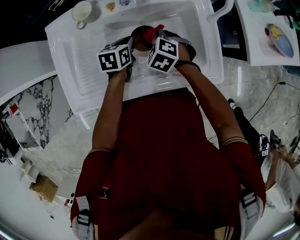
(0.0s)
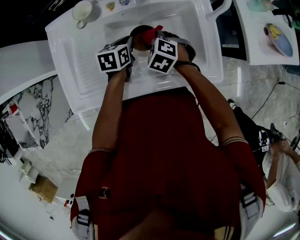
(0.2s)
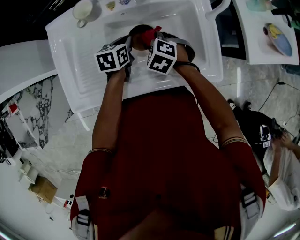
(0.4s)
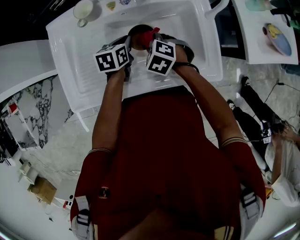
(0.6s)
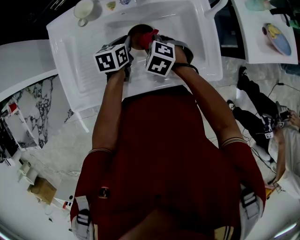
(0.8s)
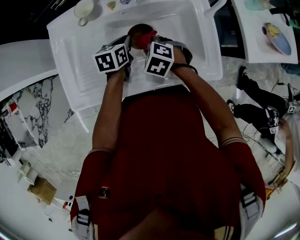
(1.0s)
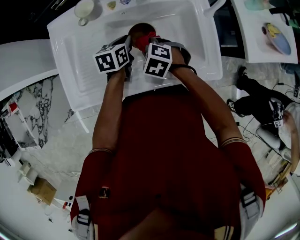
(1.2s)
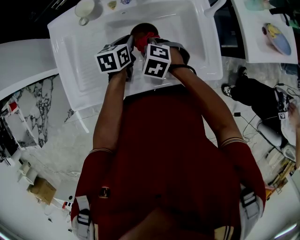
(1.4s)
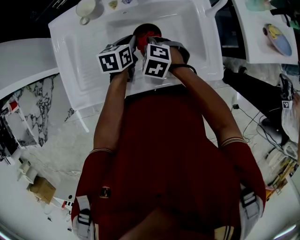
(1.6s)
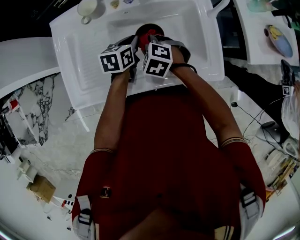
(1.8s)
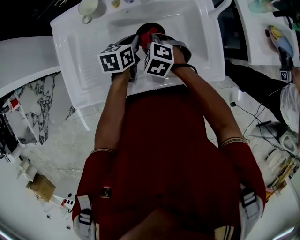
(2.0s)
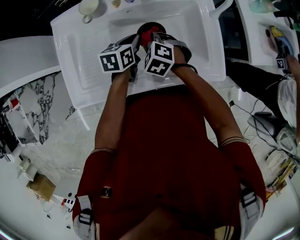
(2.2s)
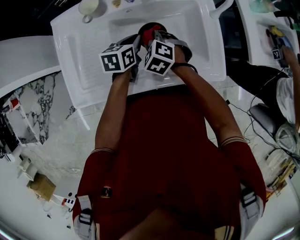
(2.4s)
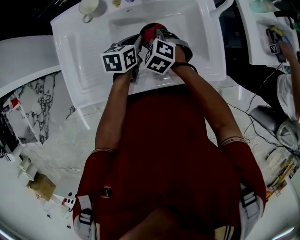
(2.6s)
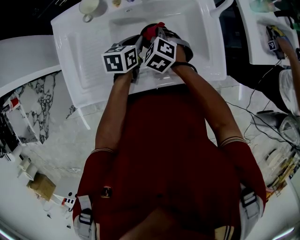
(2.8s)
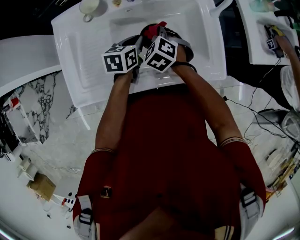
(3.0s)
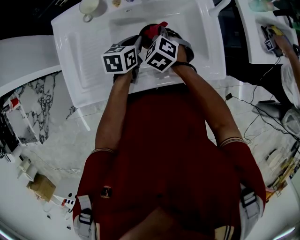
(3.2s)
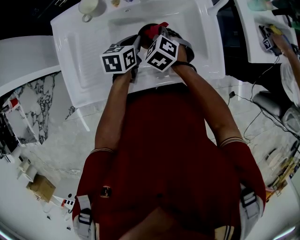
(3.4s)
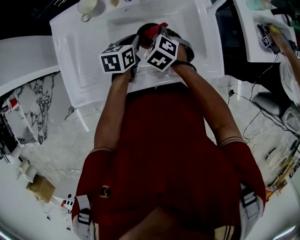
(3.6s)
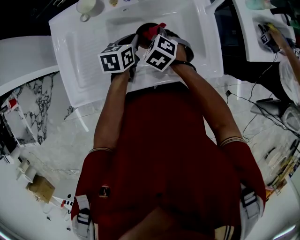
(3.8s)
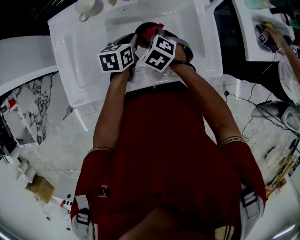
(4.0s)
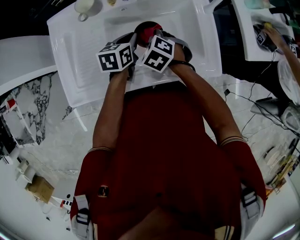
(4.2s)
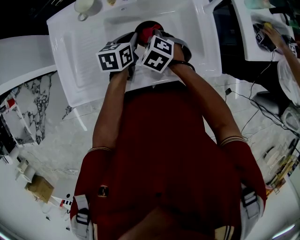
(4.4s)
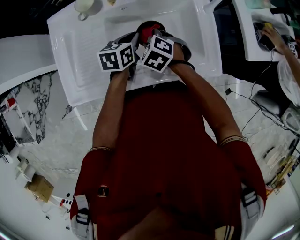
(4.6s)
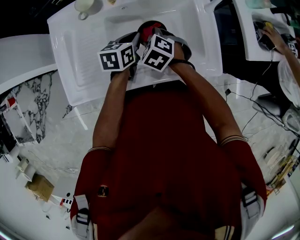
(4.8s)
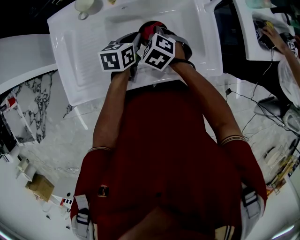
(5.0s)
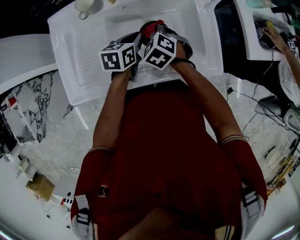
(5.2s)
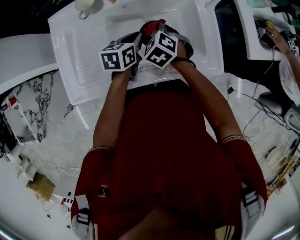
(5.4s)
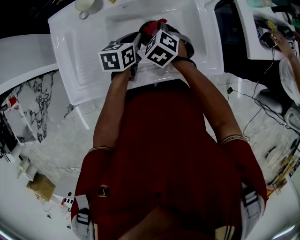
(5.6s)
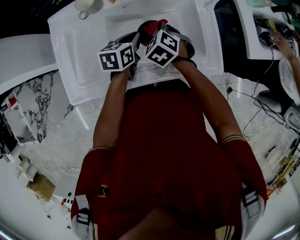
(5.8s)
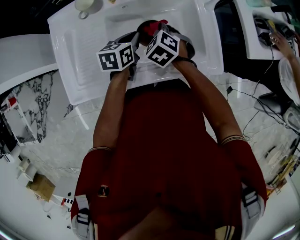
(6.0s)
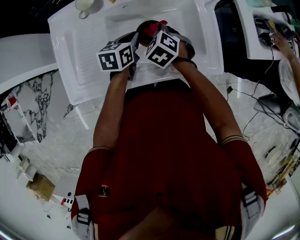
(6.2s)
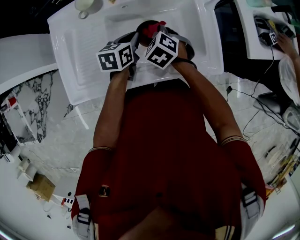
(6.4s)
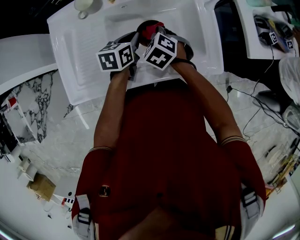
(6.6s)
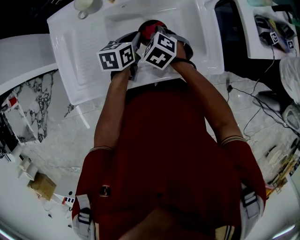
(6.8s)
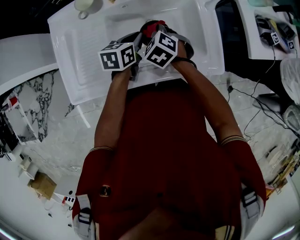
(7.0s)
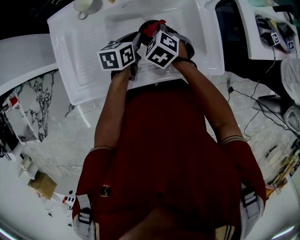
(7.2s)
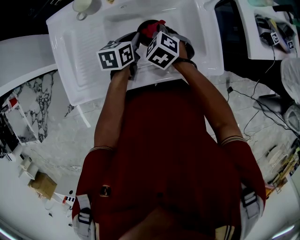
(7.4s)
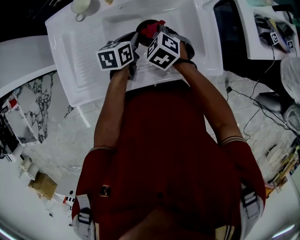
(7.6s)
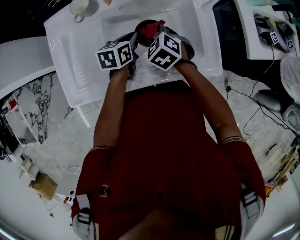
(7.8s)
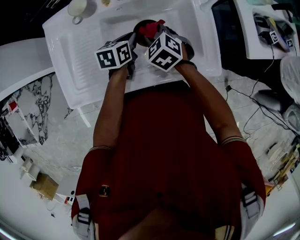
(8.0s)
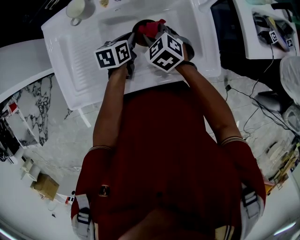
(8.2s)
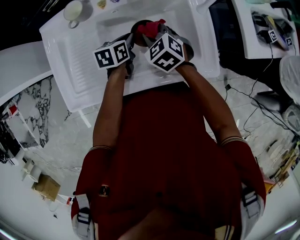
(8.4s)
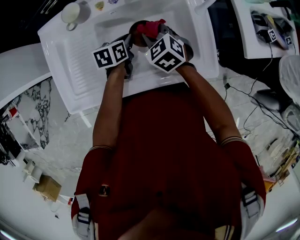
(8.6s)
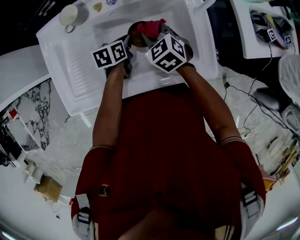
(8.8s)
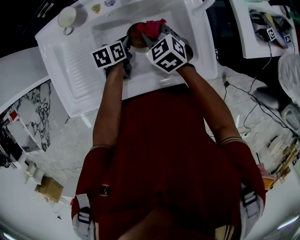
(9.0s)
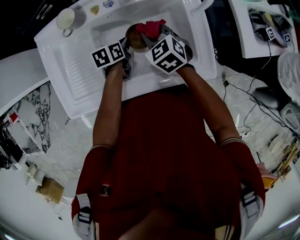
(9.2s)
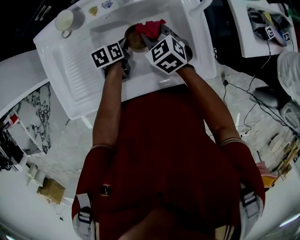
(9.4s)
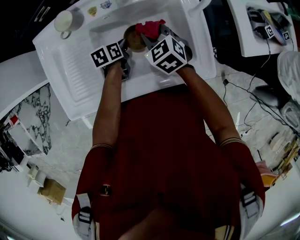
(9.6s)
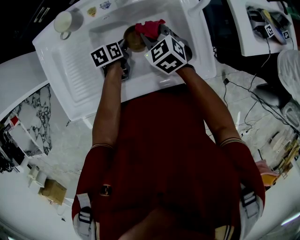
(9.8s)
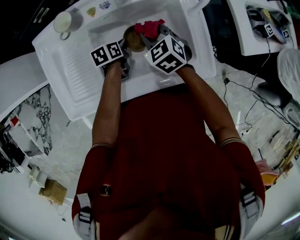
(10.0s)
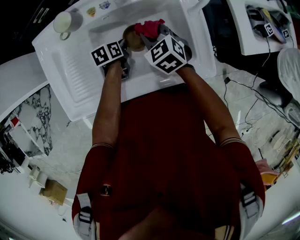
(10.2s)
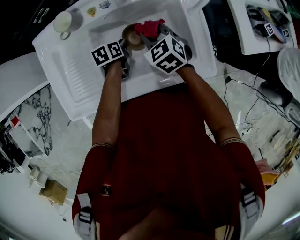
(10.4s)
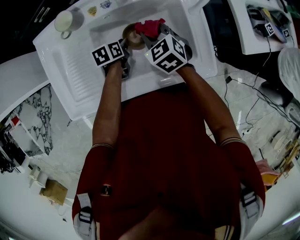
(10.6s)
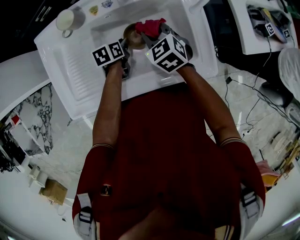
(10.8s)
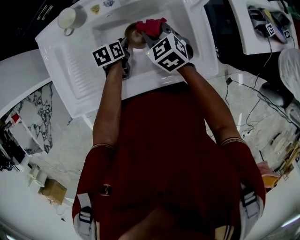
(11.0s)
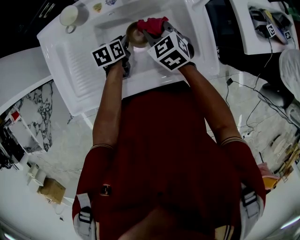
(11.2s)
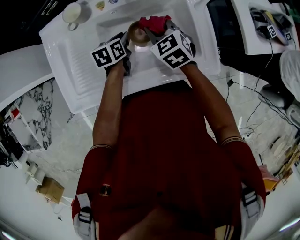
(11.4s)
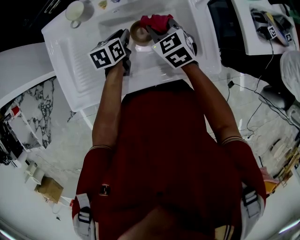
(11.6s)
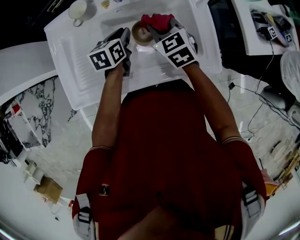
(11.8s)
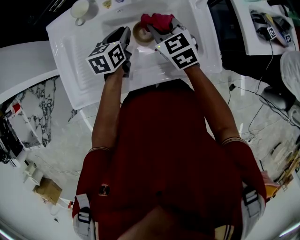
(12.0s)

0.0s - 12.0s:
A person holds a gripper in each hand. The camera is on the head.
0.0s - 1.6s: The right gripper shifts by some 5 cm.
1.6s - 3.0s: The right gripper heads forward, covering some 5 cm.
3.0s - 7.6s: The grippers make only small movements.
7.6s - 9.0s: The right gripper changes place by some 5 cm, while the left gripper goes roughly 5 cm downward.
9.0s - 10.4s: There are only small adjustments of the grippers.
10.4s - 12.0s: The right gripper goes about 5 cm upward, while the left gripper shifts some 15 cm upward, and changes its angle by approximately 30 degrees.

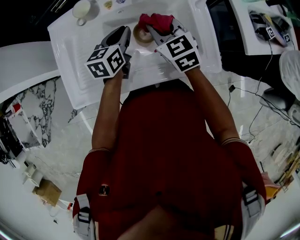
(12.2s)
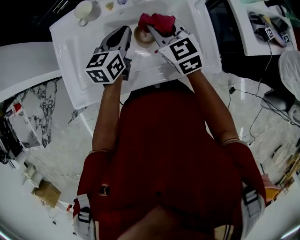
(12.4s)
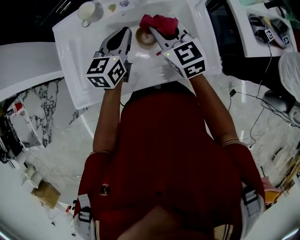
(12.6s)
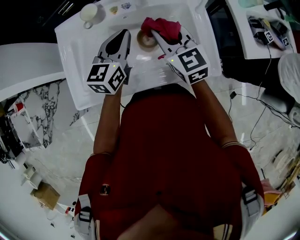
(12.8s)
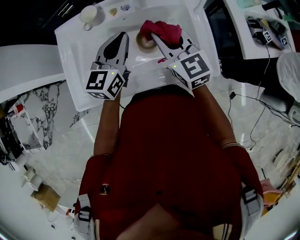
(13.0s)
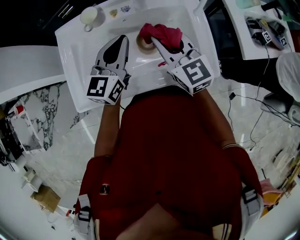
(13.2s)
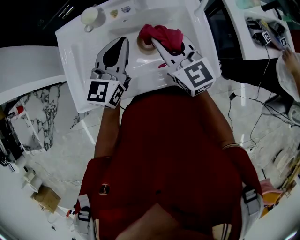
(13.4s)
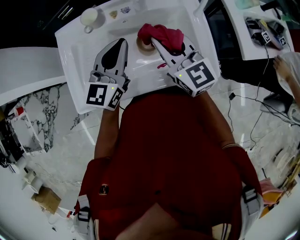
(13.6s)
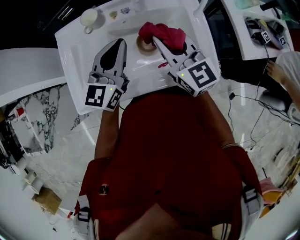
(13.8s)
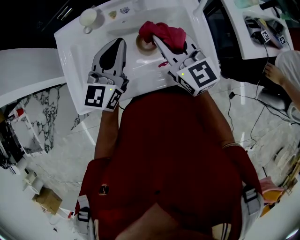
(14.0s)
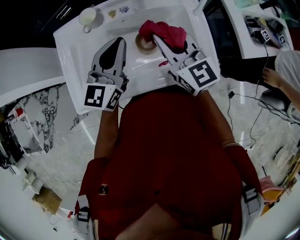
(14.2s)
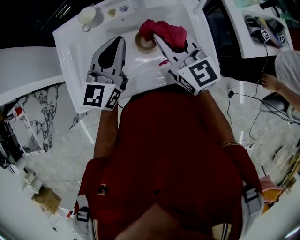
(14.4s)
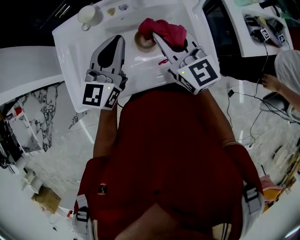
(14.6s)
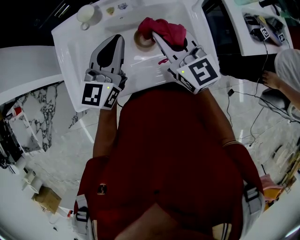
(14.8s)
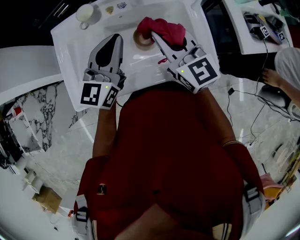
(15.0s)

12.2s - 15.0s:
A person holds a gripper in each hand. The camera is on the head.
12.2s - 13.6s: Both grippers travel together upward, about 10 cm. The left gripper rotates roughly 30 degrees. The right gripper rotates roughly 20 degrees.
13.6s - 15.0s: Both grippers stay about where they are.

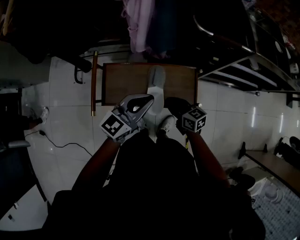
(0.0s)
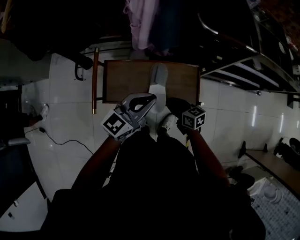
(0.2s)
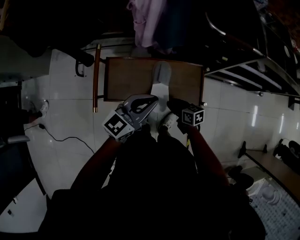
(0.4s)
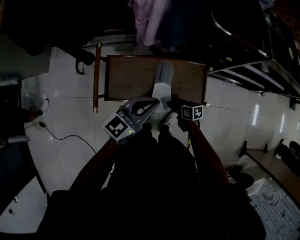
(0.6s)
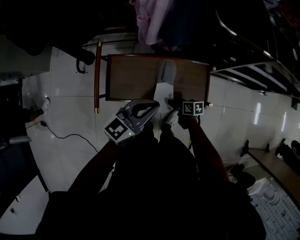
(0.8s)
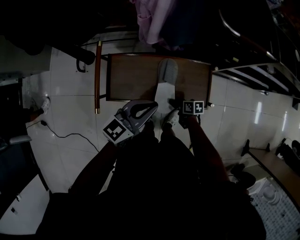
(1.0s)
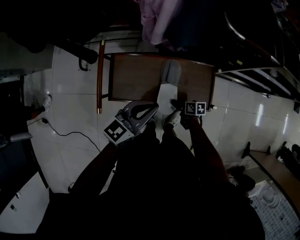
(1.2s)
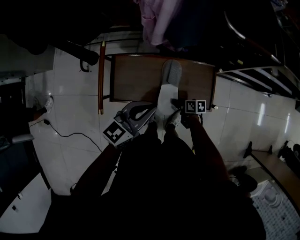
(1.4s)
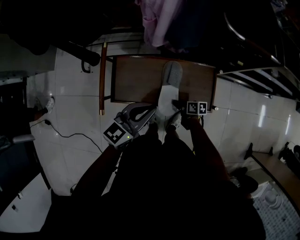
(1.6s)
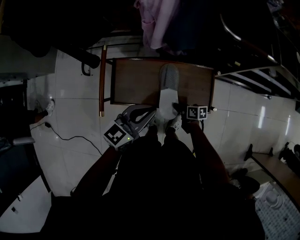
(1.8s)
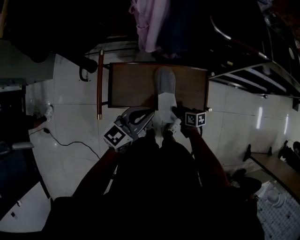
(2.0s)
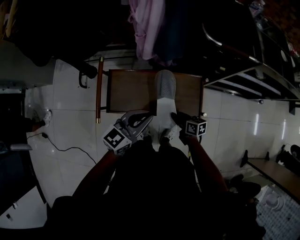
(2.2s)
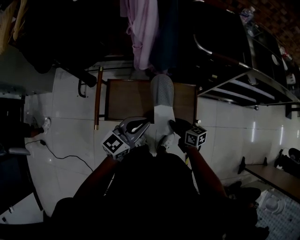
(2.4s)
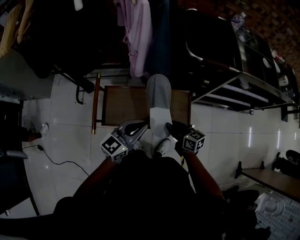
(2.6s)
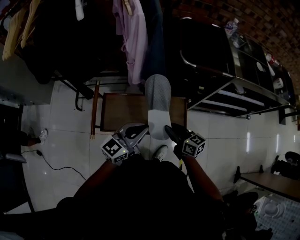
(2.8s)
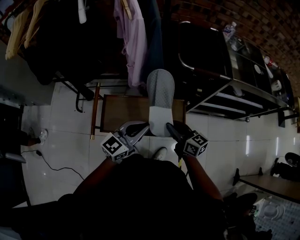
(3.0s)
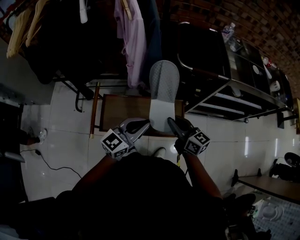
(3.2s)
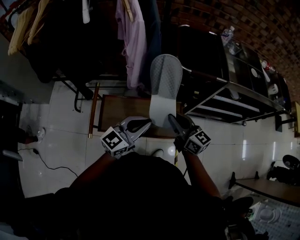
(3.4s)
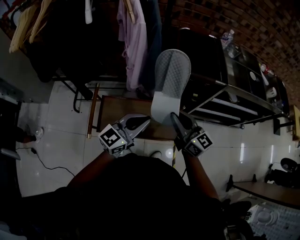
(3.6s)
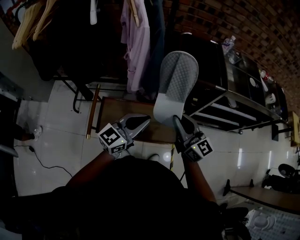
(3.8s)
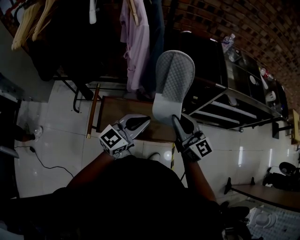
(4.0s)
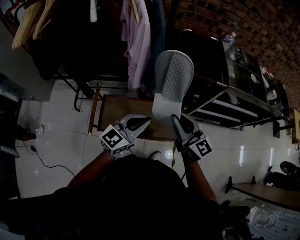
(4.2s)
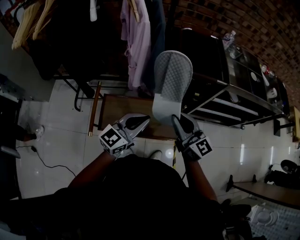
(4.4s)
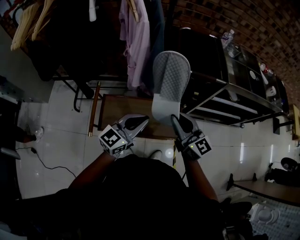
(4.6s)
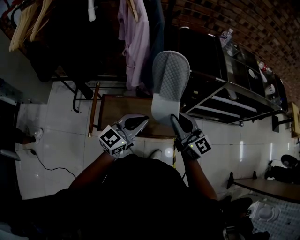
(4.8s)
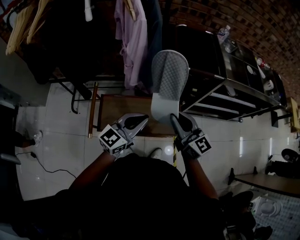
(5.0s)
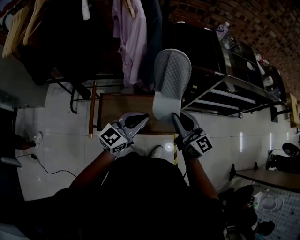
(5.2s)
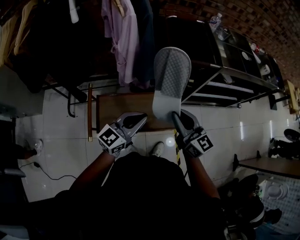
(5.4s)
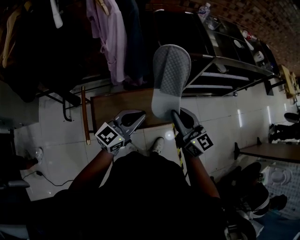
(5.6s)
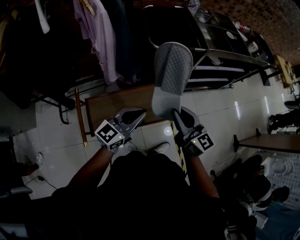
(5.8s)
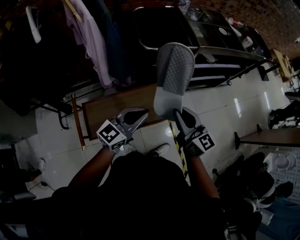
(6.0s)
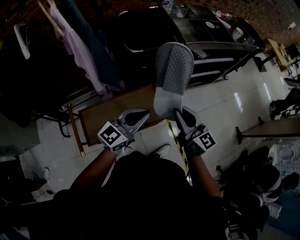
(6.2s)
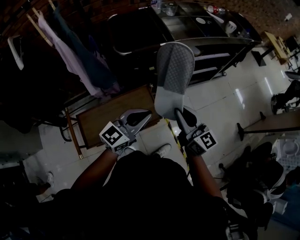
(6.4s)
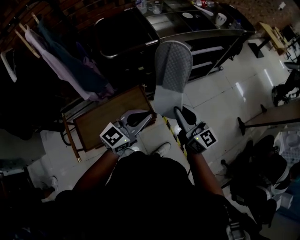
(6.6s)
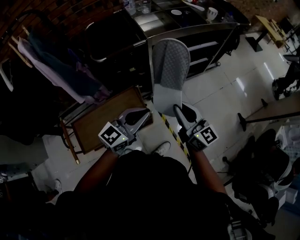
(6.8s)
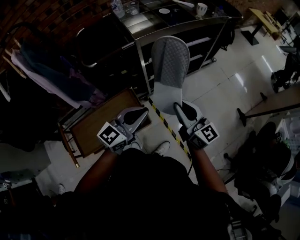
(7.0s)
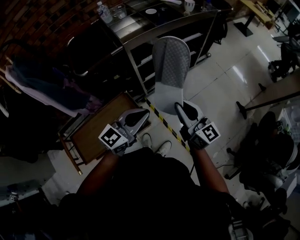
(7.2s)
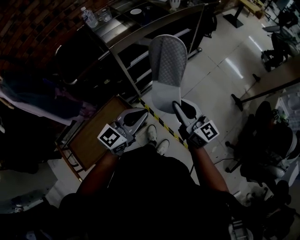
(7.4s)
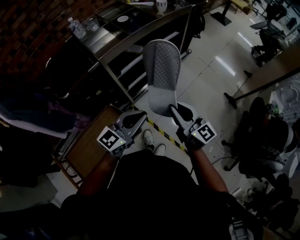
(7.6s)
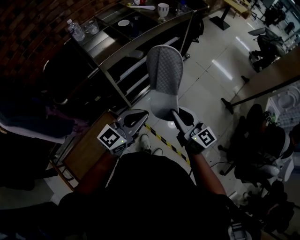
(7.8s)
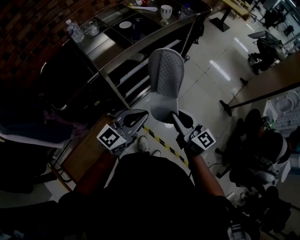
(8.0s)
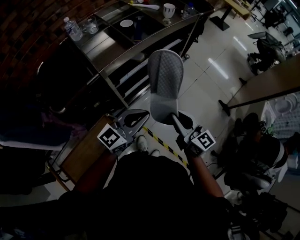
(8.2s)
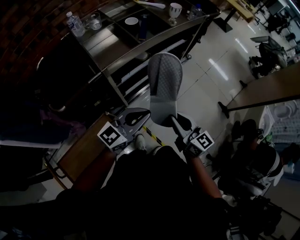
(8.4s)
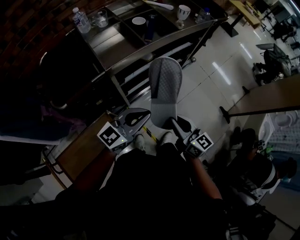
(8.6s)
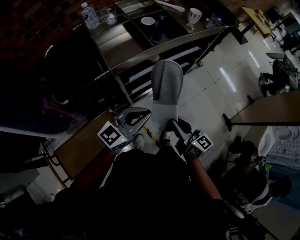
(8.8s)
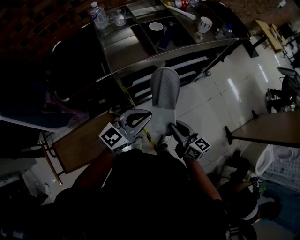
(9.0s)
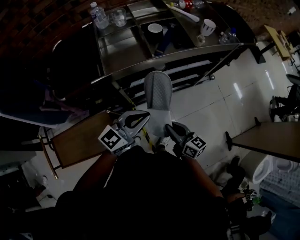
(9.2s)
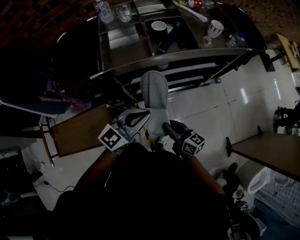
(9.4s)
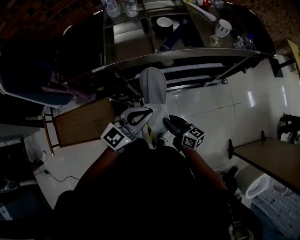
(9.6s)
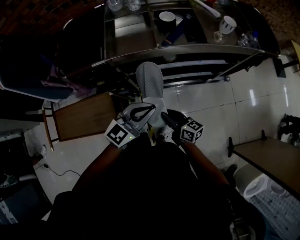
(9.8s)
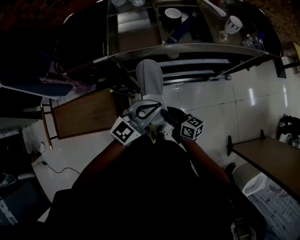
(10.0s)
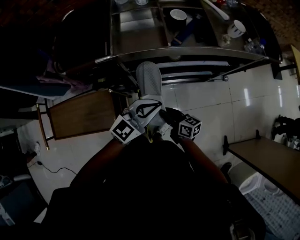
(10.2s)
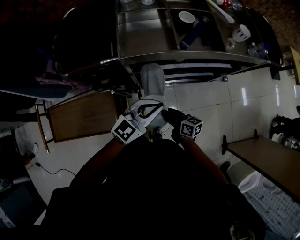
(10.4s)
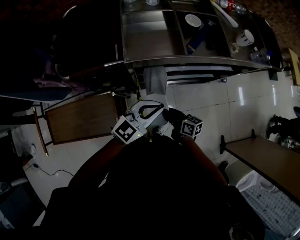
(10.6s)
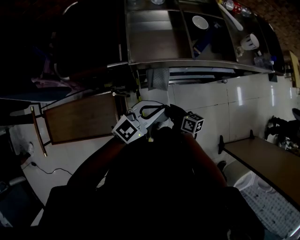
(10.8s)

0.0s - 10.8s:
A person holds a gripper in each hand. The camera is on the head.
0.0s - 1.6s: The right gripper moves downward, some 25 cm, changes its angle by roughly 40 degrees, and opens, then closes once more, while the left gripper moves downward, about 5 cm.
1.6s - 3.0s: The right gripper shifts about 35 cm upward, and rotates roughly 50 degrees. Meanwhile the left gripper travels upward and to the right by some 15 cm.
3.0s - 4.6s: The right gripper is displaced upward by about 15 cm, and turns by approximately 30 degrees.
4.6s - 6.2s: The two grippers go some 15 cm to the right. The right gripper turns by roughly 30 degrees; the left gripper turns by about 20 degrees.
6.2s - 7.8s: The two grippers go approximately 30 cm to the right and forward. The left gripper turns by approximately 20 degrees. Meanwhile the right gripper swivels some 20 degrees.
7.8s - 9.2s: The right gripper shifts roughly 20 cm forward and downward, and rotates about 30 degrees. Meanwhile the left gripper heads forward, covering some 15 cm, and turns by some 20 degrees.
9.2s - 10.8s: The left gripper heads downward and forward, covering approximately 10 cm, and travels to the right and back again, some 5 cm each way. The right gripper shifts about 20 cm downward, forward and to the left, and swivels roughly 30 degrees.
